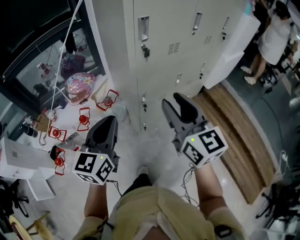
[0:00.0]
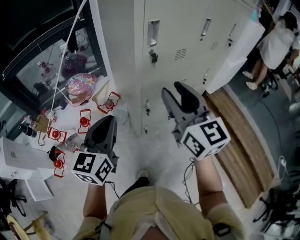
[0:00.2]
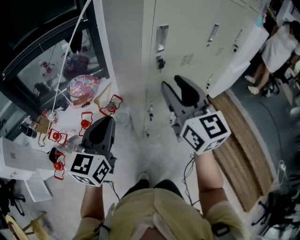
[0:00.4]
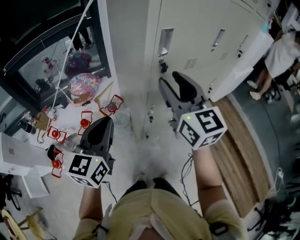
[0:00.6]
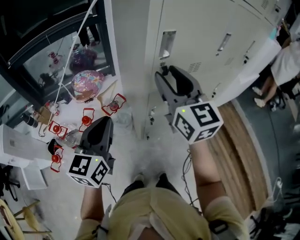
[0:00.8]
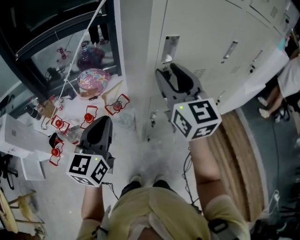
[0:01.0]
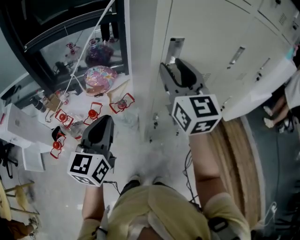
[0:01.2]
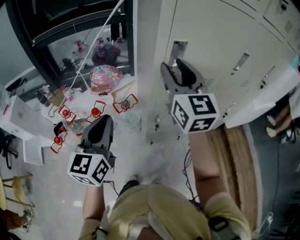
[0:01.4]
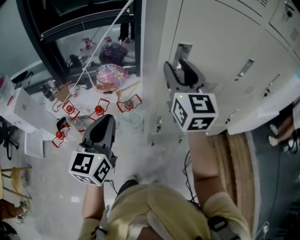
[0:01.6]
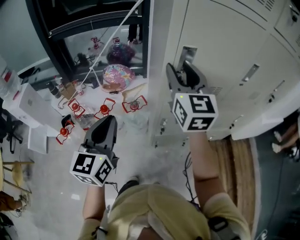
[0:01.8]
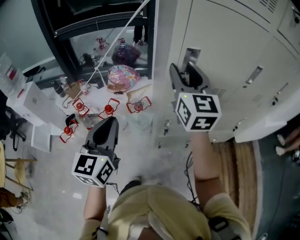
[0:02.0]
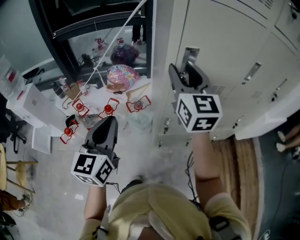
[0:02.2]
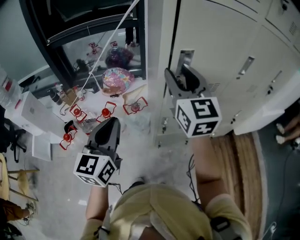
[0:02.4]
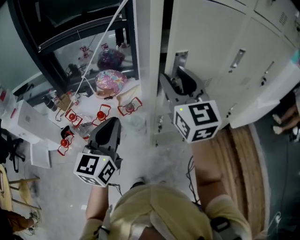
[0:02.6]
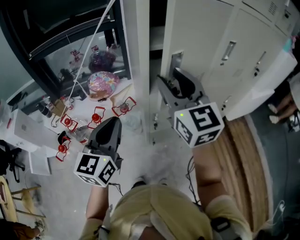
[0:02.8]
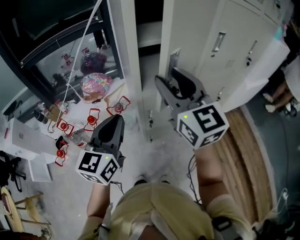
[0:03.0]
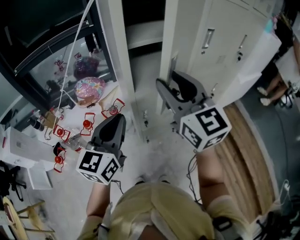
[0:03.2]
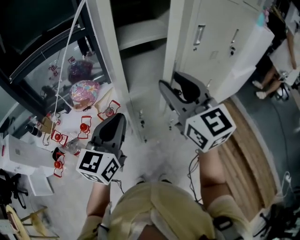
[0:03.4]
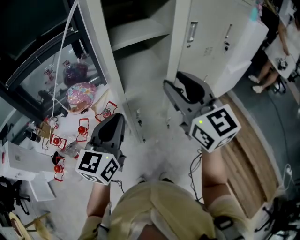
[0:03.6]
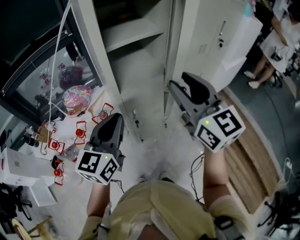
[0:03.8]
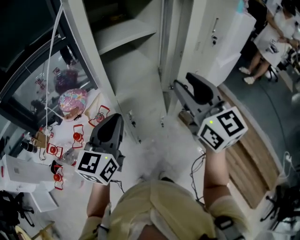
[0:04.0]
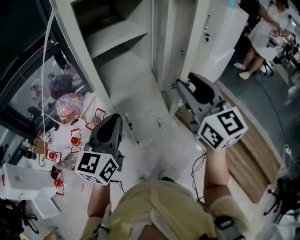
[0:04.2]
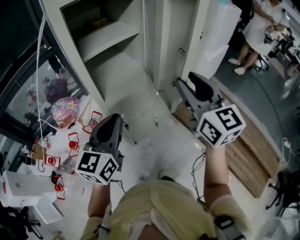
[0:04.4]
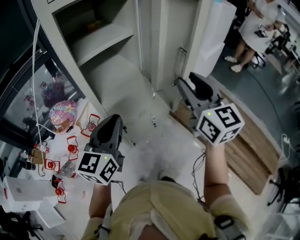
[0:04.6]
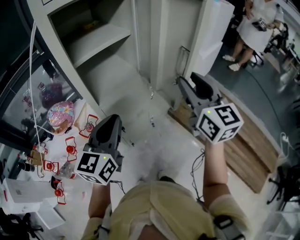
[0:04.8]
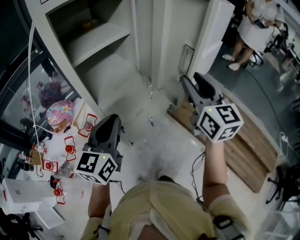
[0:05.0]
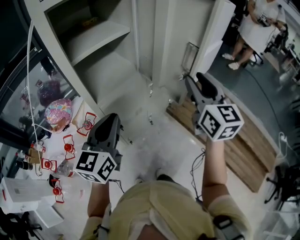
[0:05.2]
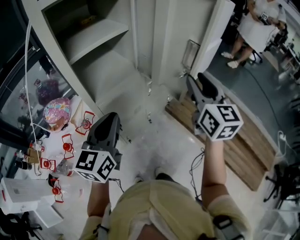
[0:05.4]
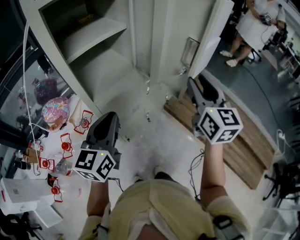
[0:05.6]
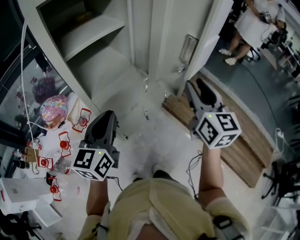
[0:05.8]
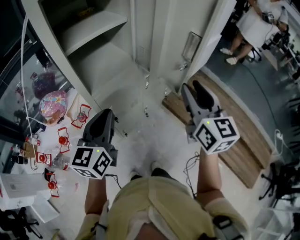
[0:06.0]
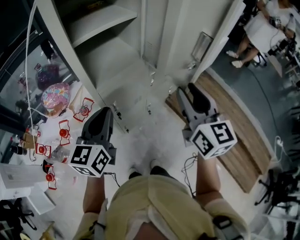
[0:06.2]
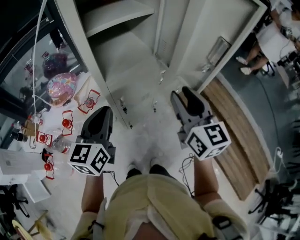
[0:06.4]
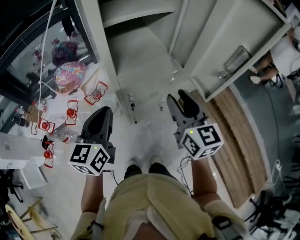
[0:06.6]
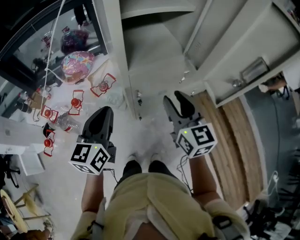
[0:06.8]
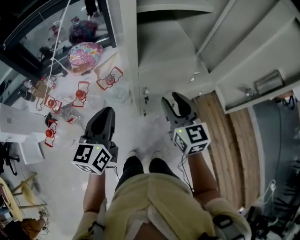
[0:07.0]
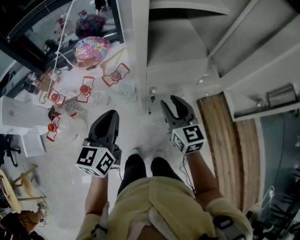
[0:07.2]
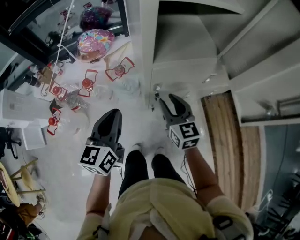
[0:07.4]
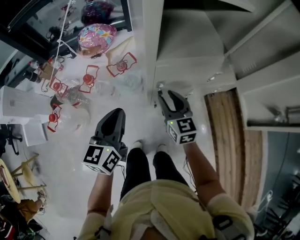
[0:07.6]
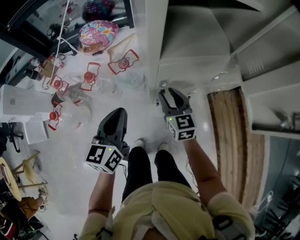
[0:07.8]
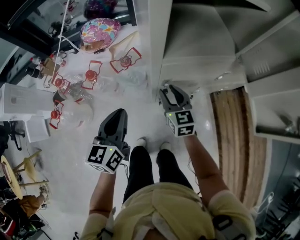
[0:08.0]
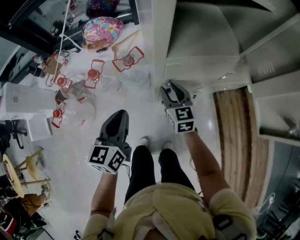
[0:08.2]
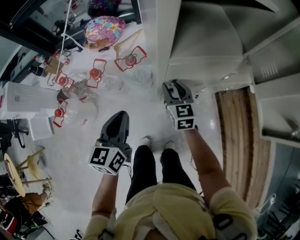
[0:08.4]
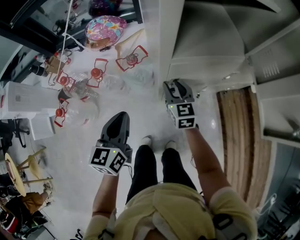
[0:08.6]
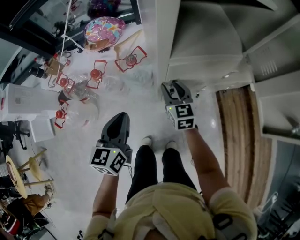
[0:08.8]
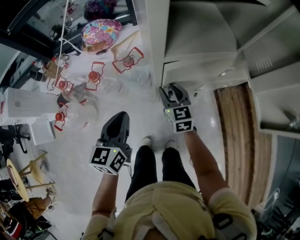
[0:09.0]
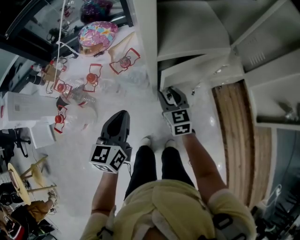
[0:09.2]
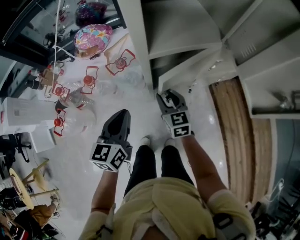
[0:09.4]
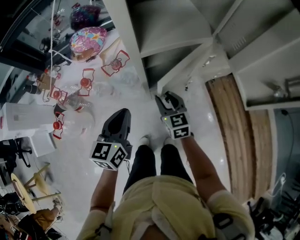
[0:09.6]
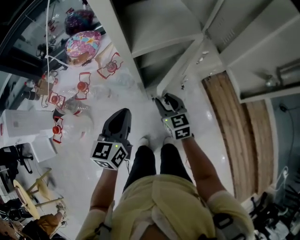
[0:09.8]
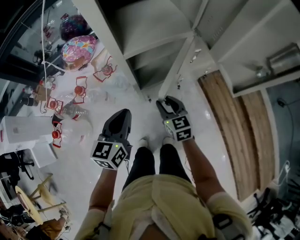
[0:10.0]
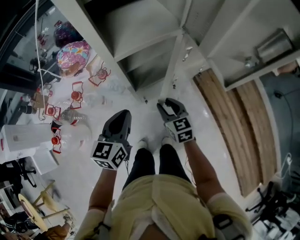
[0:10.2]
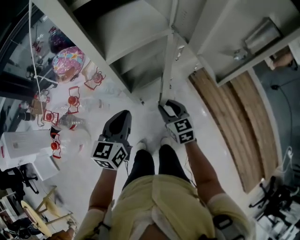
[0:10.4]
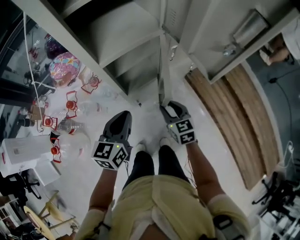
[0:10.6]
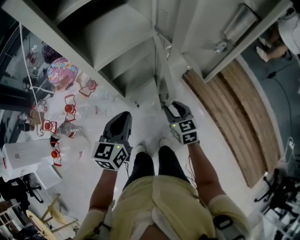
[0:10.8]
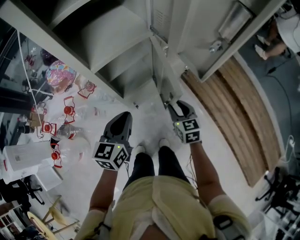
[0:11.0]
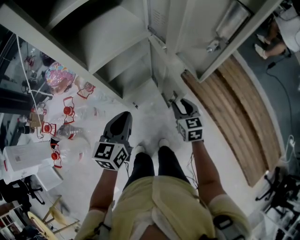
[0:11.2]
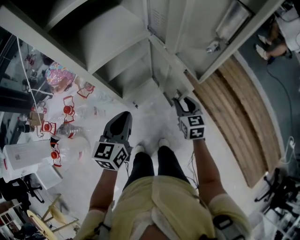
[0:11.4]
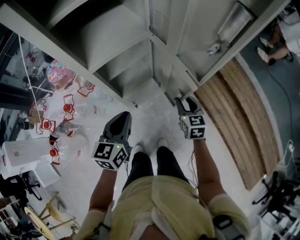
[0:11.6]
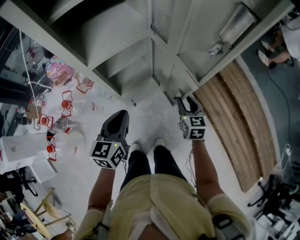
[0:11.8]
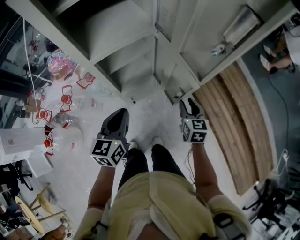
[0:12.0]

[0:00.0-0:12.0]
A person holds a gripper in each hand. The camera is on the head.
0.0 to 1.6 s: The left gripper is displaced forward by roughly 5 cm, and changes its angle by roughly 30 degrees. Meanwhile the right gripper travels forward by about 25 cm.
1.6 to 3.0 s: The right gripper moves backward, about 10 cm; the left gripper shifts approximately 5 cm to the right.
3.0 to 4.4 s: The right gripper travels to the right by approximately 20 cm, and rotates approximately 30 degrees. Meanwhile the left gripper shifts approximately 10 cm to the right, and rotates roughly 20 degrees.
4.4 to 6.0 s: The right gripper moves to the right and downward, roughly 10 cm.
6.0 to 7.6 s: The right gripper moves downward, about 30 cm, and swivels roughly 40 degrees, while the left gripper shifts by approximately 20 cm, and turns by about 30 degrees.
7.6 to 9.0 s: The left gripper moves some 5 cm. Meanwhile the right gripper is displaced downward by roughly 5 cm.
9.0 to 10.4 s: The left gripper travels to the right by some 15 cm, and swivels approximately 20 degrees. The right gripper shifts roughly 20 cm to the right and backward.
10.4 to 12.0 s: The right gripper travels to the right by about 20 cm, and turns by approximately 20 degrees. Meanwhile the left gripper is displaced to the right by roughly 5 cm.

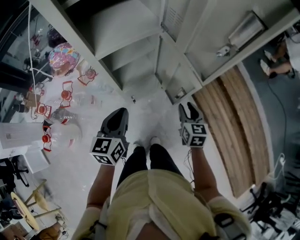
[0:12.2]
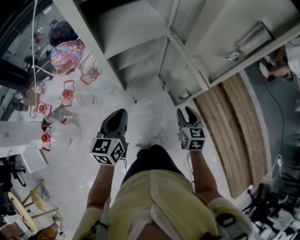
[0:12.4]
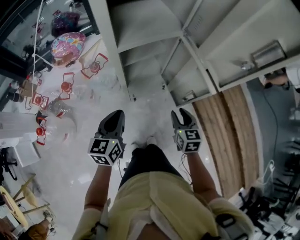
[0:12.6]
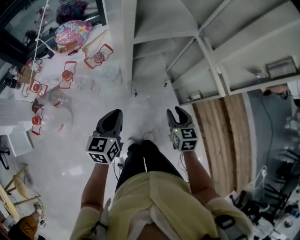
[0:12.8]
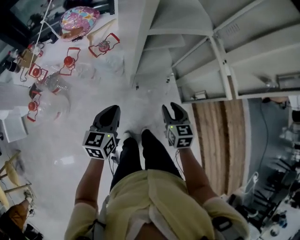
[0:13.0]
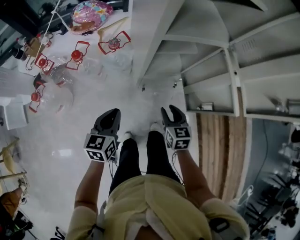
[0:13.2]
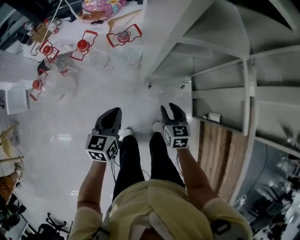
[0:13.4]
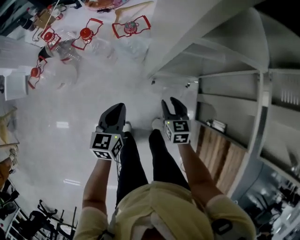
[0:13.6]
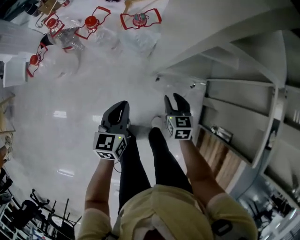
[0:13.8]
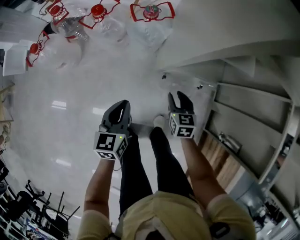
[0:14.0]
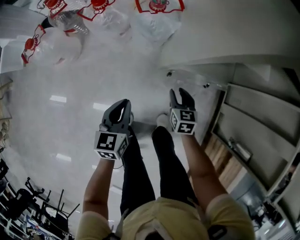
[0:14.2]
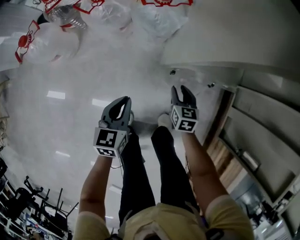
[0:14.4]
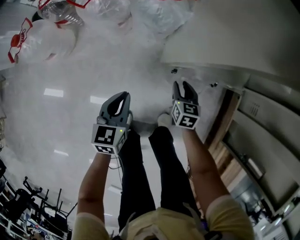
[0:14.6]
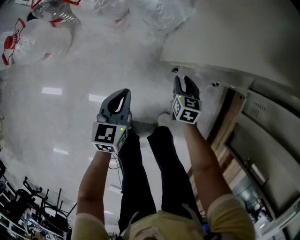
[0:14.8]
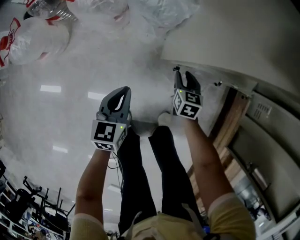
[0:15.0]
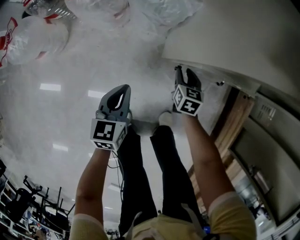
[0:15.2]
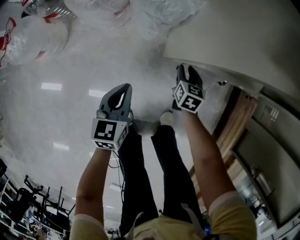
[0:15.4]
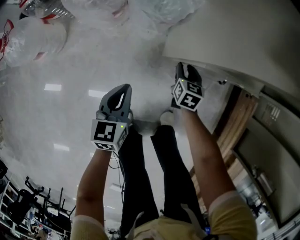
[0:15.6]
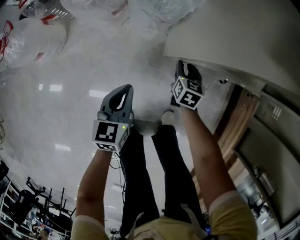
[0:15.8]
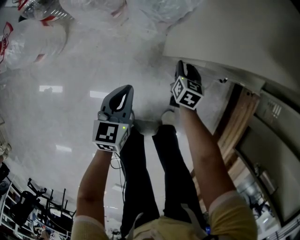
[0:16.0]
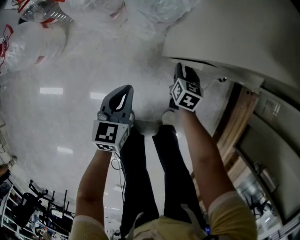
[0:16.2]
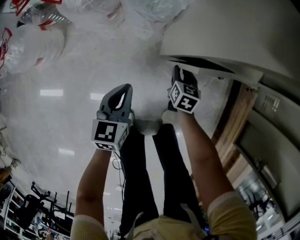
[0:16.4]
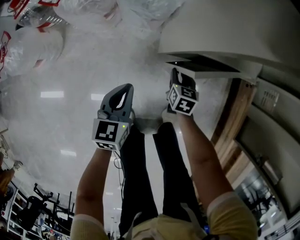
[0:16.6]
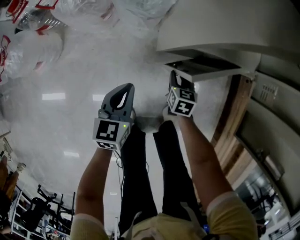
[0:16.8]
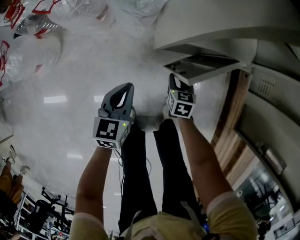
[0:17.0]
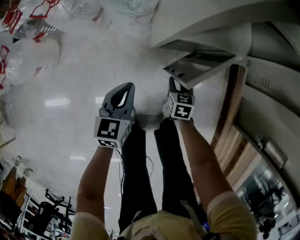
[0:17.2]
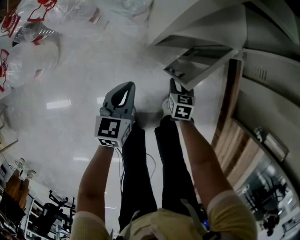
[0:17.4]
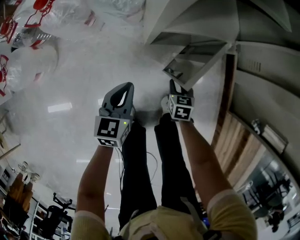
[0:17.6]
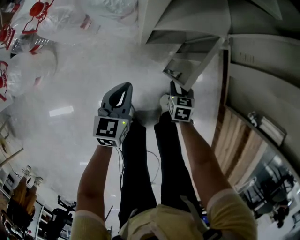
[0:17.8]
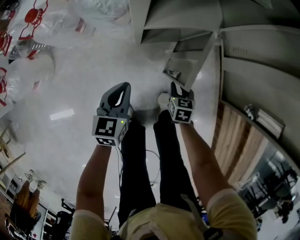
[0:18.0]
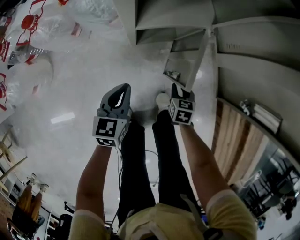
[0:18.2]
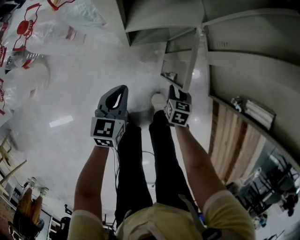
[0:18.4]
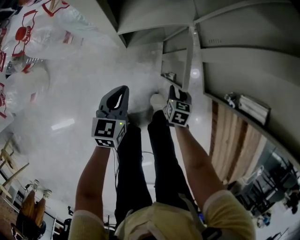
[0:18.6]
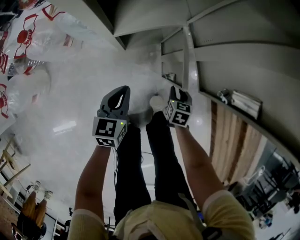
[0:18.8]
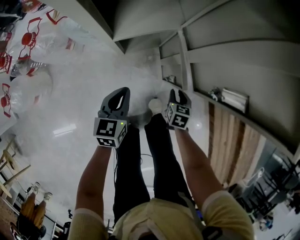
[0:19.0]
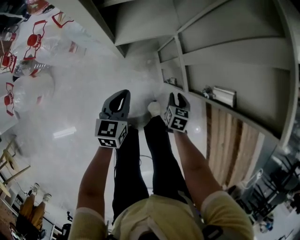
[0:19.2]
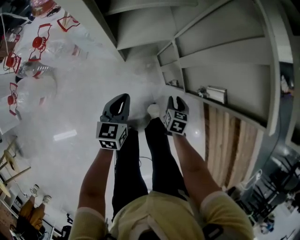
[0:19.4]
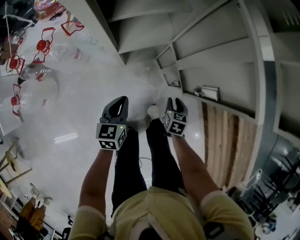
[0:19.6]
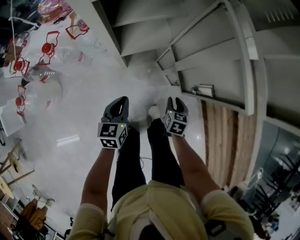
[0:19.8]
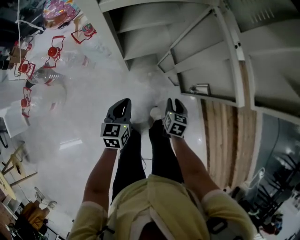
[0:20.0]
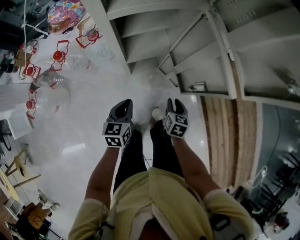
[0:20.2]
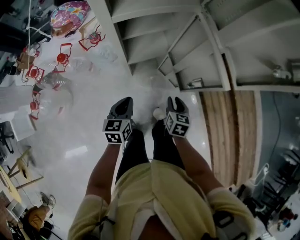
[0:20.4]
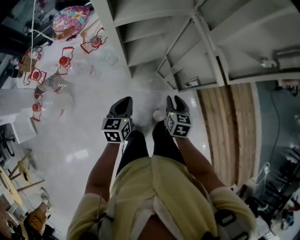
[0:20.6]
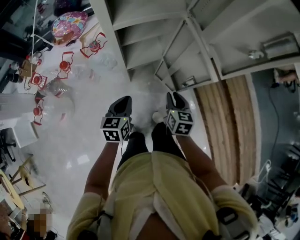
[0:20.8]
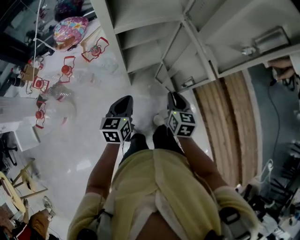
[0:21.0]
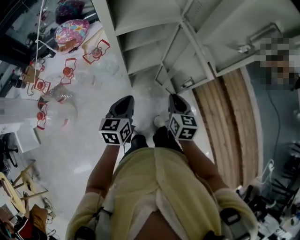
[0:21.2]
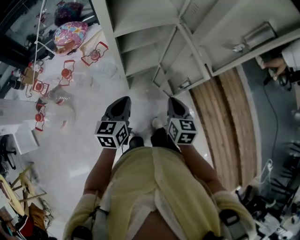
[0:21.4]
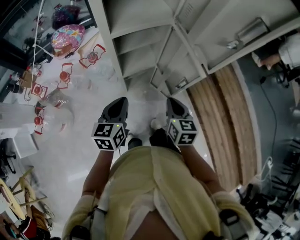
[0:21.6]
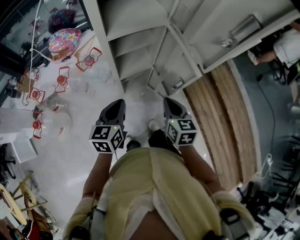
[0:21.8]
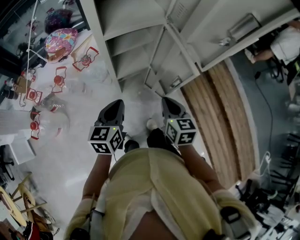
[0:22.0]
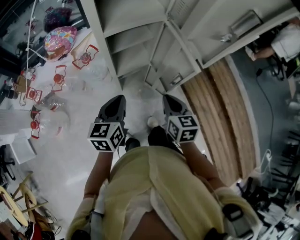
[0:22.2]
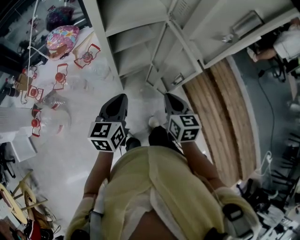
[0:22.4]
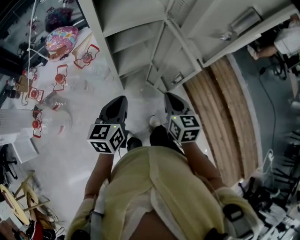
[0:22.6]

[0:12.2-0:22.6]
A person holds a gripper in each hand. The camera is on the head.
12.2 to 13.6 s: The left gripper heads downward, covering about 15 cm, and rotates some 30 degrees. The right gripper ends up approximately 25 cm from where it was, and swivels some 40 degrees.
13.6 to 15.2 s: The two grippers go some 30 cm downward.
15.2 to 16.6 s: There are only small adjustments of the grippers.
16.6 to 18.2 s: The left gripper shifts some 10 cm to the right. Meanwhile the right gripper travels to the right and backward by approximately 20 cm.
18.2 to 19.6 s: The right gripper heads upward and to the right, covering roughly 15 cm, while the left gripper goes some 10 cm upward.
19.6 to 21.2 s: Both grippers move upward, about 25 cm. The right gripper turns by about 30 degrees.
21.2 to 22.6 s: The grippers both shift upward by roughly 5 cm.

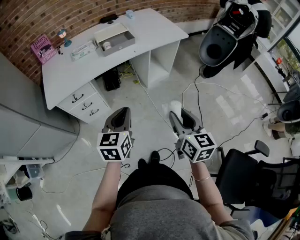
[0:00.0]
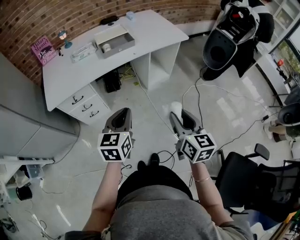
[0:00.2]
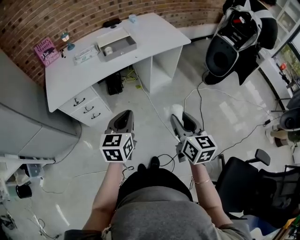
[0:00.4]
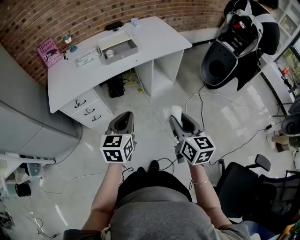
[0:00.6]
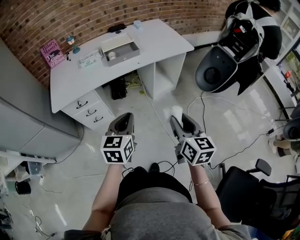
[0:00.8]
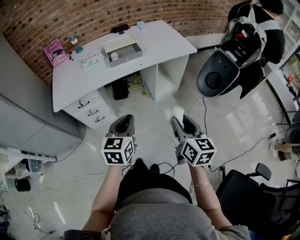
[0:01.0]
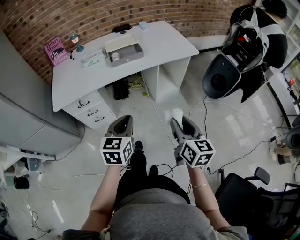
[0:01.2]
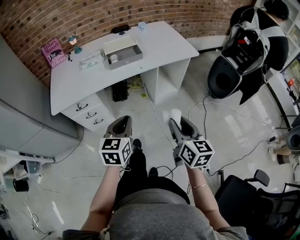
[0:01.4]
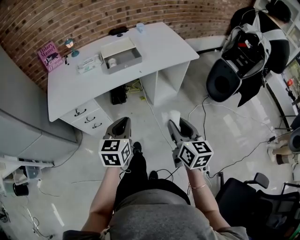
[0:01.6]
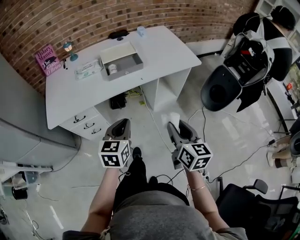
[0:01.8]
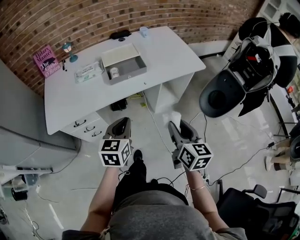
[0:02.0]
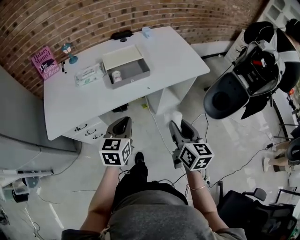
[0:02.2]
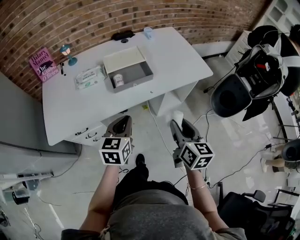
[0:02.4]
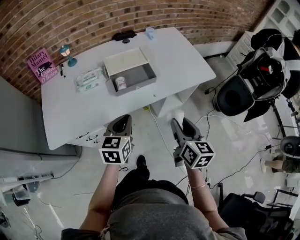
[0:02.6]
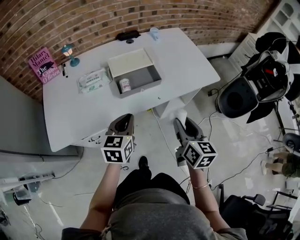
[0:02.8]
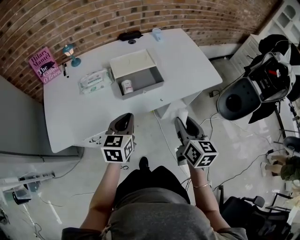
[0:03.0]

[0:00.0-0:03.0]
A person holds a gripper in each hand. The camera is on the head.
0.0 to 1.6 s: The two grippers go about 10 cm forward.
1.6 to 3.0 s: The left gripper heads forward and to the left, covering about 25 cm; the right gripper moves forward, about 25 cm.
